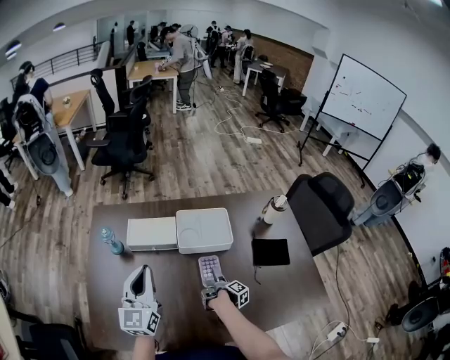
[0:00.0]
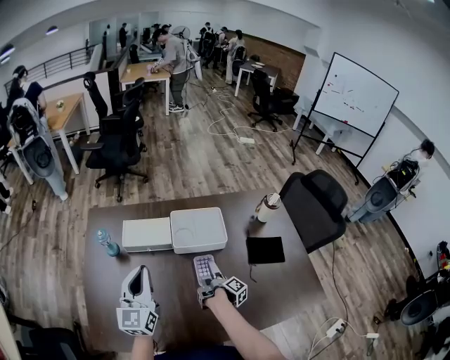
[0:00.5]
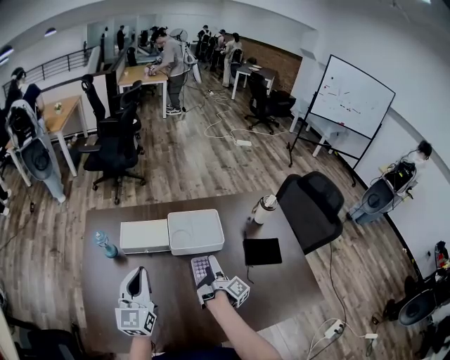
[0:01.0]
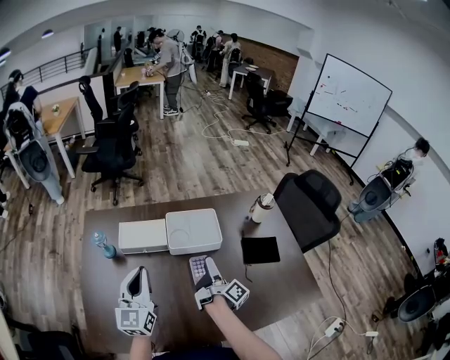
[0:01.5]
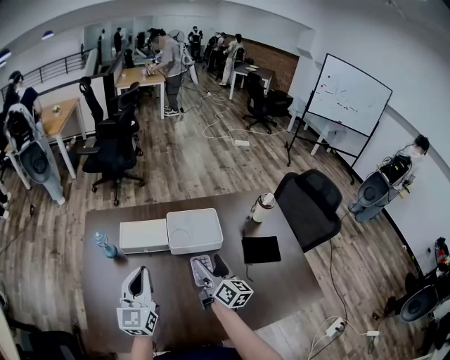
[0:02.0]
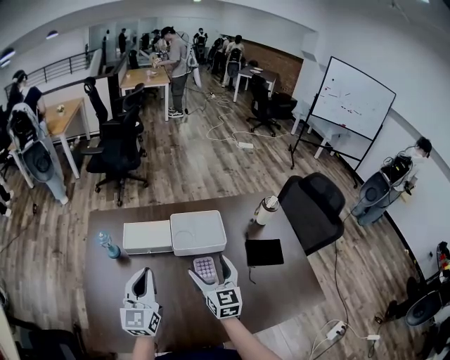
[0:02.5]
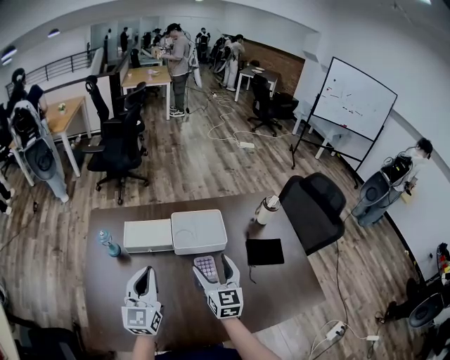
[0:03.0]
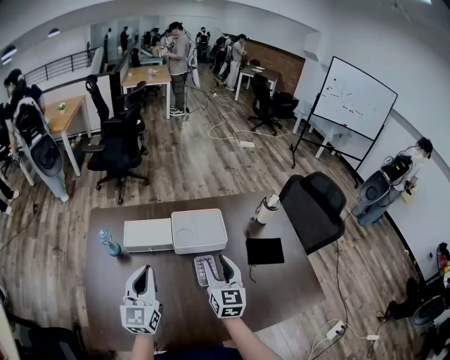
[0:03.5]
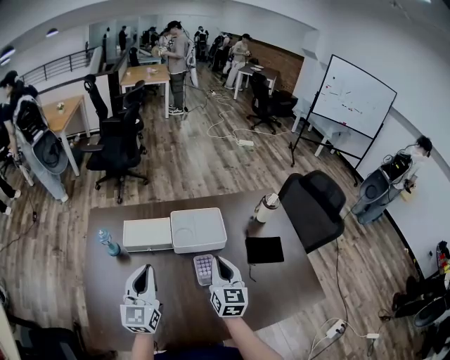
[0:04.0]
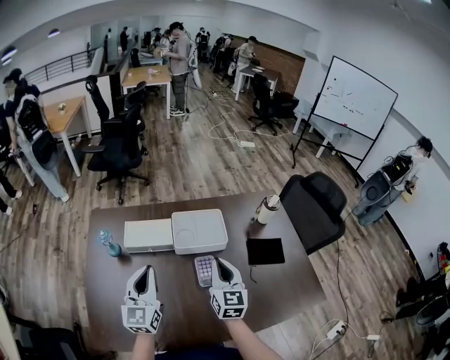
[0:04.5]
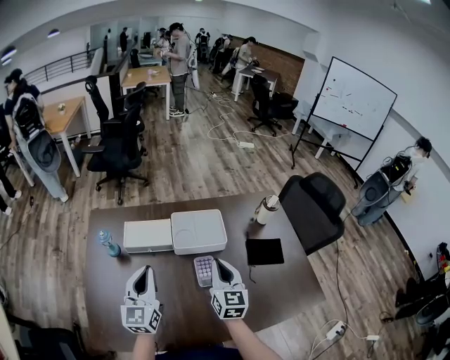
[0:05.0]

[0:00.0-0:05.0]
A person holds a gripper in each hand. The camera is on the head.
0:00.0 to 0:02.5: The right gripper travels upward by some 30 cm, and twists some 100 degrees counterclockwise, seen from behind.
0:02.5 to 0:05.0: The right gripper closes up.

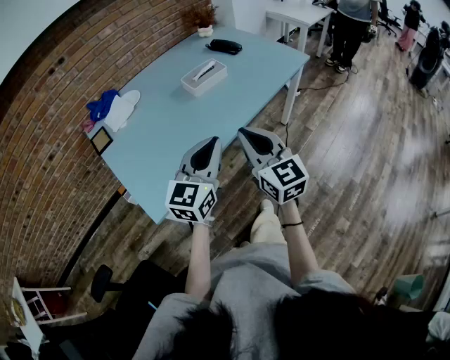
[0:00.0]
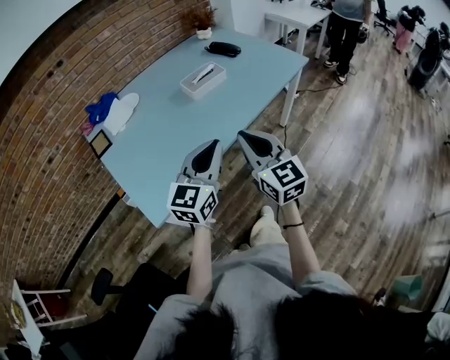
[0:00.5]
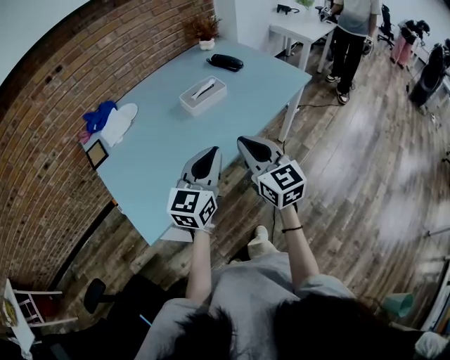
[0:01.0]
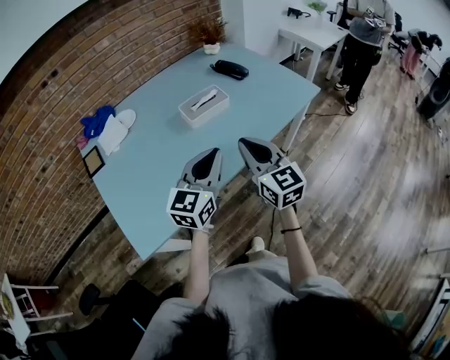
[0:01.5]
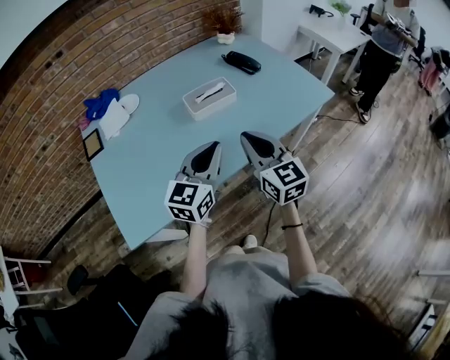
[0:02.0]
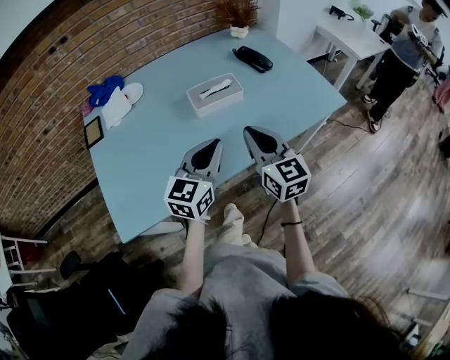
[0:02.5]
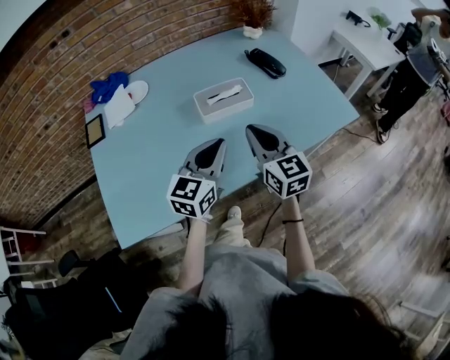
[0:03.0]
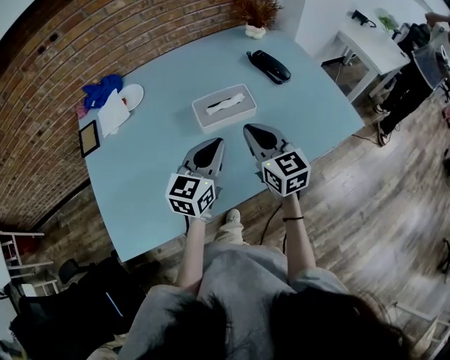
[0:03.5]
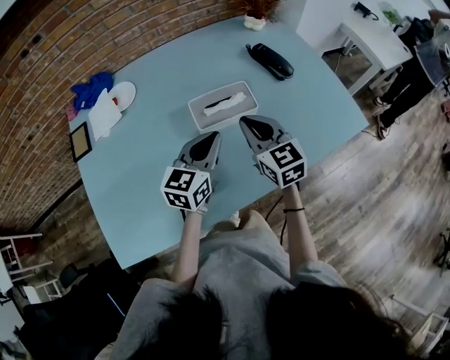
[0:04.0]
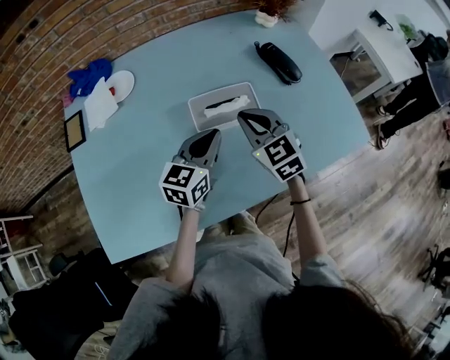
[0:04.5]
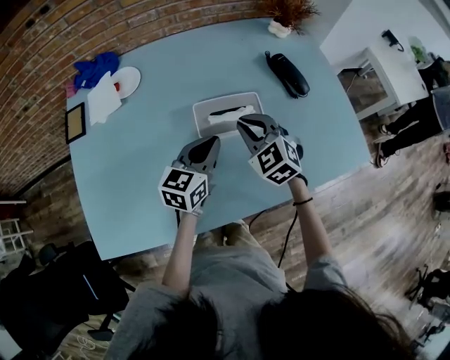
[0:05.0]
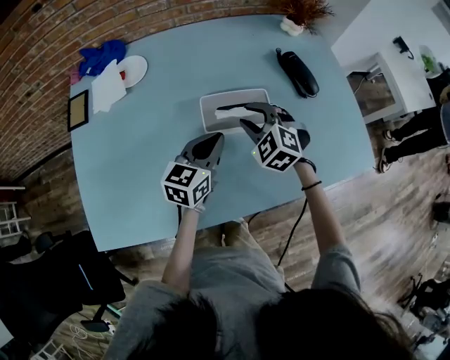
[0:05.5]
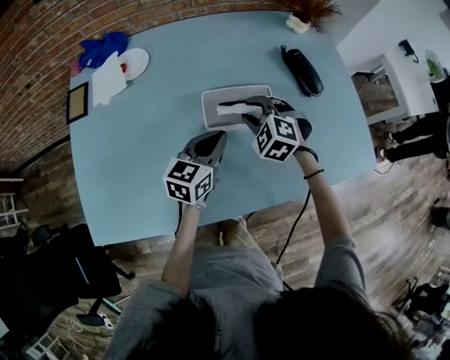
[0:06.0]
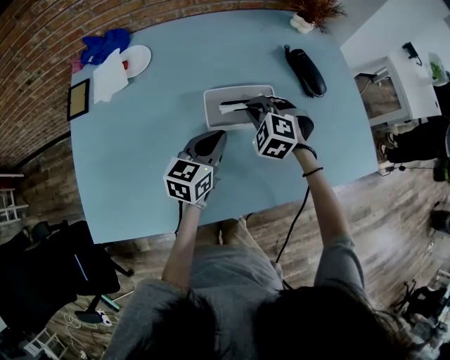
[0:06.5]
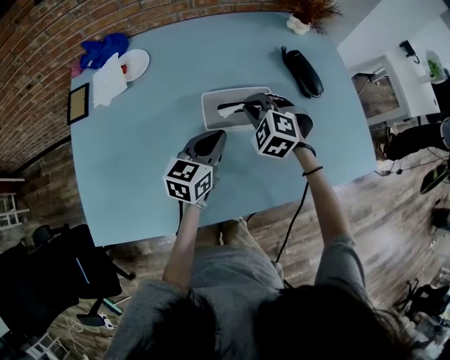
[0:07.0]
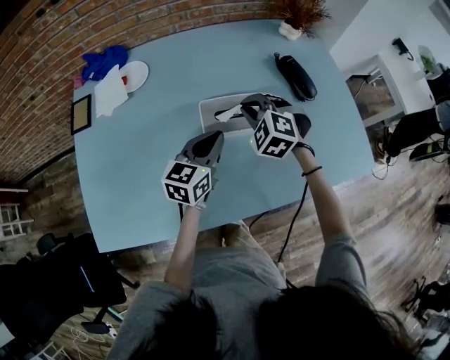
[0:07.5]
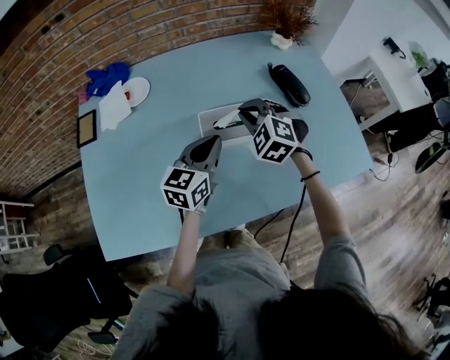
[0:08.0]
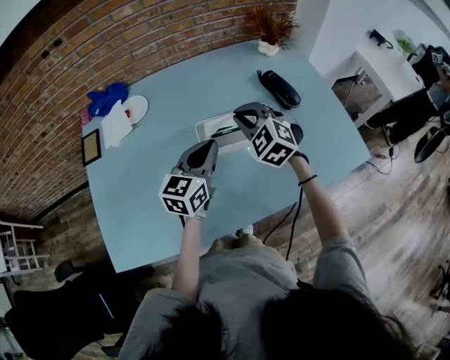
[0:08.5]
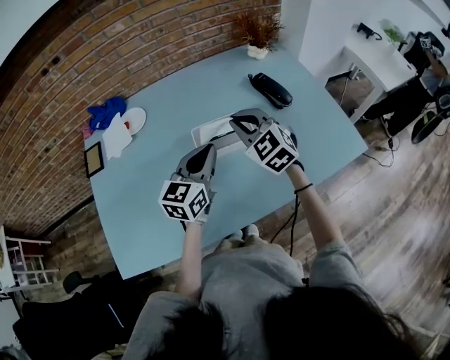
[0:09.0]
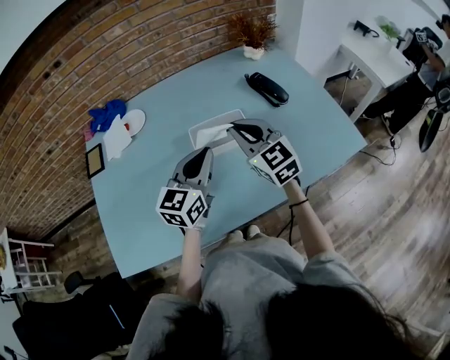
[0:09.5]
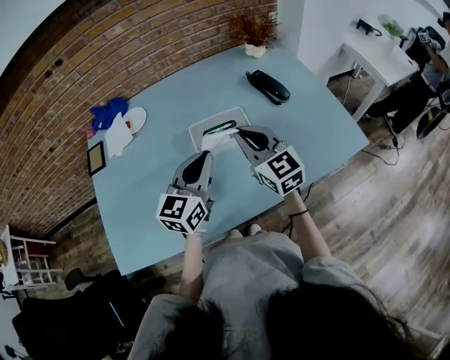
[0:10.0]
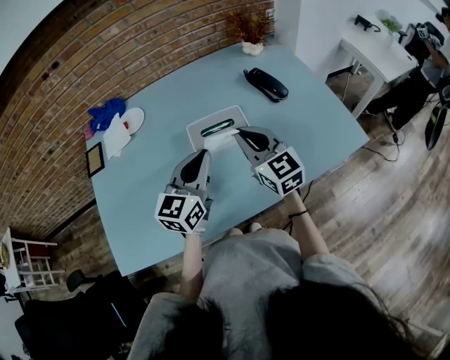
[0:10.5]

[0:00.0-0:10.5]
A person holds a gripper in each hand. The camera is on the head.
0:00.0 to 0:02.0: The grippers both shift forward by about 20 cm.
0:02.0 to 0:04.0: The grippers both shift forward by some 25 cm.
0:04.0 to 0:06.5: The right gripper is displaced downward and forward by approximately 15 cm, twists roughly 50 degrees counterclockwise, seen from behind, and opens and closes again. Meanwhile the left gripper heads downward, covering roughly 5 cm.
0:06.5 to 0:08.5: Both grippers travel together upward, approximately 10 cm. The right gripper rotates about 20 degrees.
0:08.5 to 0:10.5: The two grippers go some 10 cm backward. The right gripper turns by roughly 40 degrees.

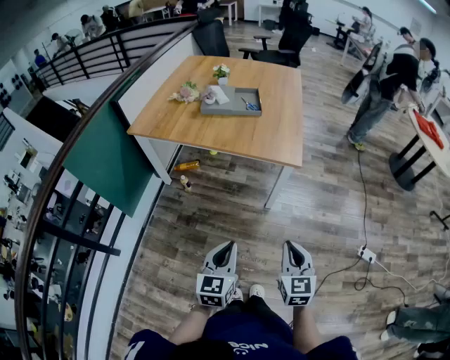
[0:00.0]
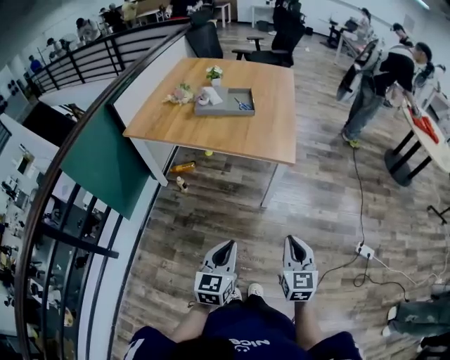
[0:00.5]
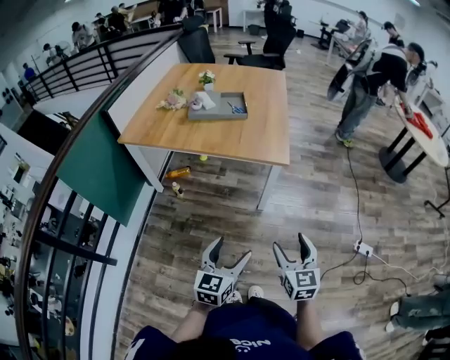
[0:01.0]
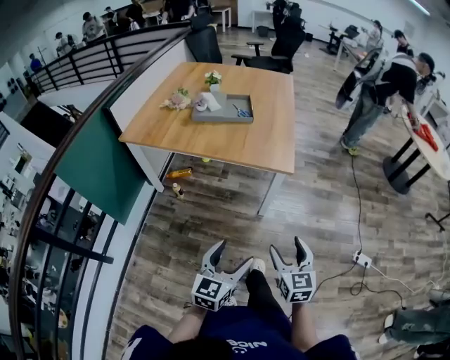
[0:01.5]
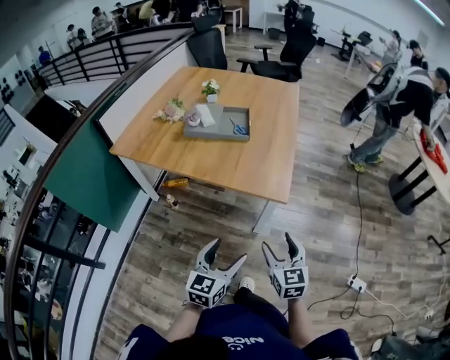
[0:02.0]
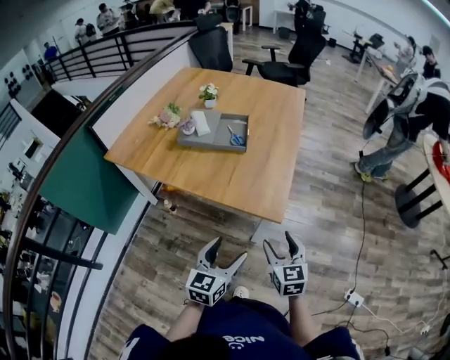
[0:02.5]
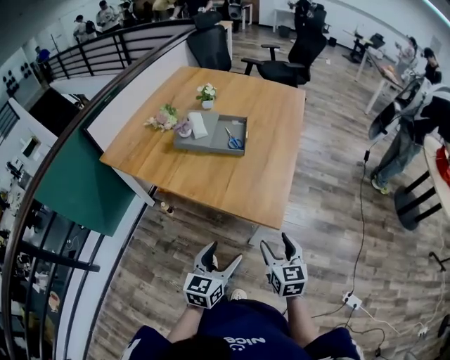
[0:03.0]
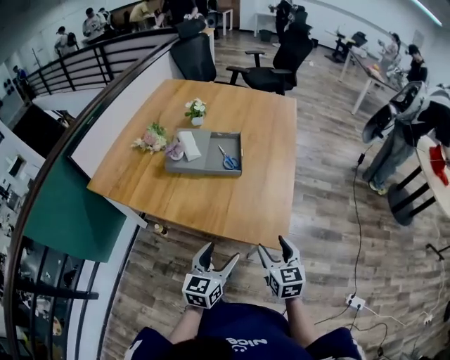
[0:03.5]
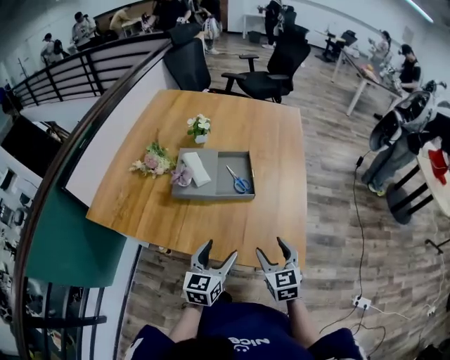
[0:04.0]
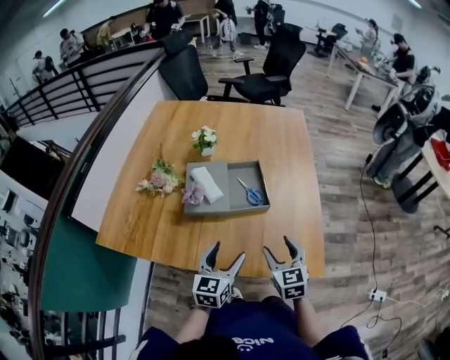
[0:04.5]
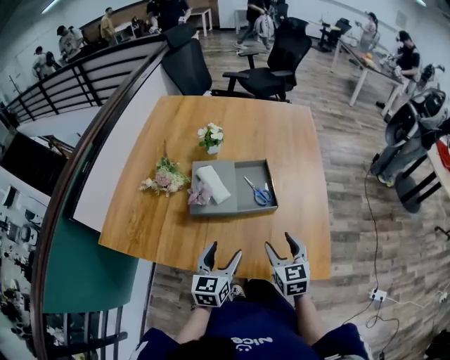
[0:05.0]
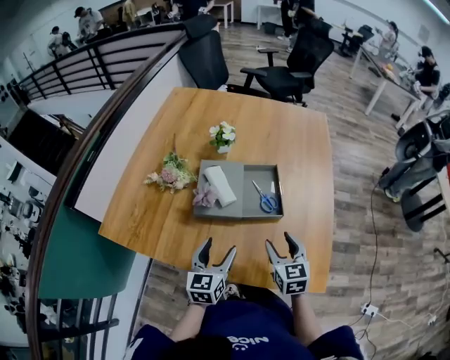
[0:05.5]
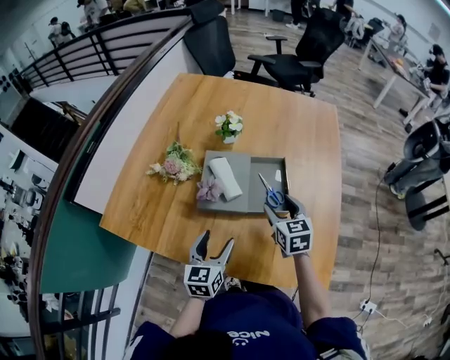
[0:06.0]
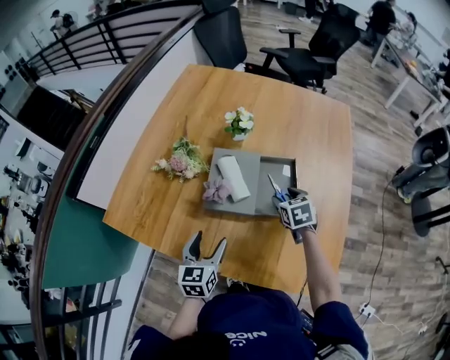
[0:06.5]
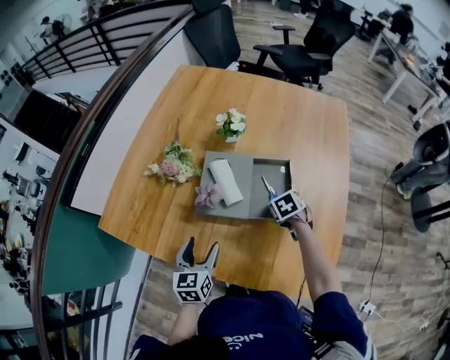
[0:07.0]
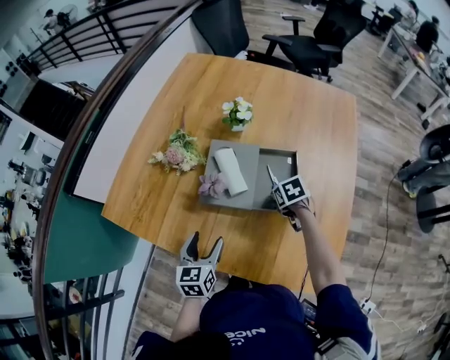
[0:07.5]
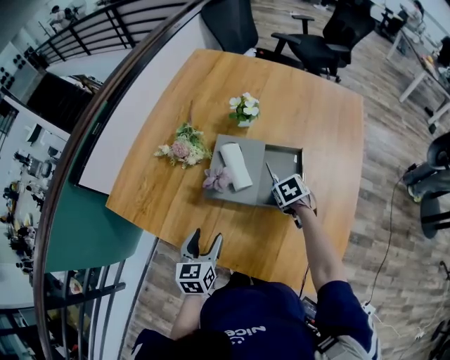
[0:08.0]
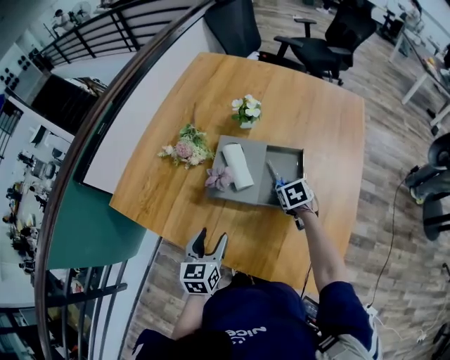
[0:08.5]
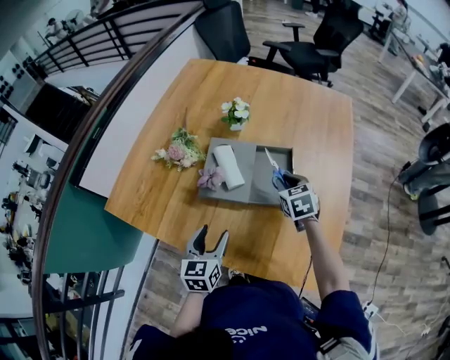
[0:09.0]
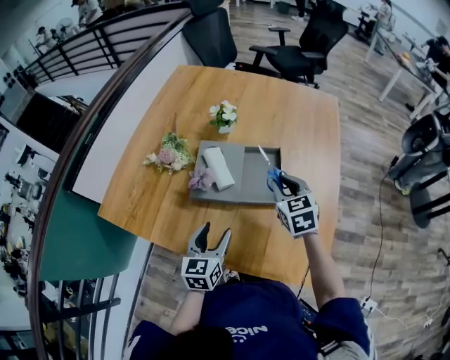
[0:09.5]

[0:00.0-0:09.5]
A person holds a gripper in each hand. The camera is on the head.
0:00.0 to 0:02.0: The left gripper travels forward and to the right by about 20 cm, and opens its fingers; the right gripper moves forward, some 20 cm, and opens.
0:02.0 to 0:04.0: Both grippers move forward, some 30 cm.
0:04.0 to 0:05.5: The right gripper is displaced forward and to the left by some 15 cm. The left gripper shifts about 15 cm to the left and forward.
0:05.5 to 0:07.5: The right gripper goes some 20 cm forward and downward, and tilts its fingers approximately 40 degrees downward. Meanwhile the left gripper goes approximately 5 cm to the left.
0:07.5 to 0:09.5: The right gripper is displaced upward by some 15 cm, and points its fingers roughly 30 degrees further upward, while the left gripper shifts some 5 cm to the right.

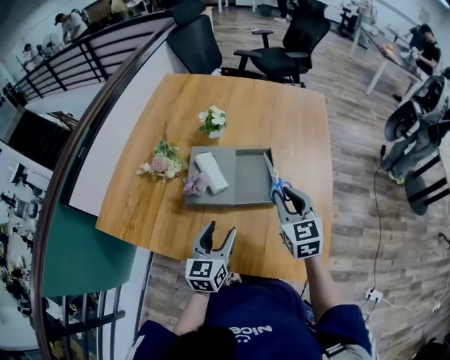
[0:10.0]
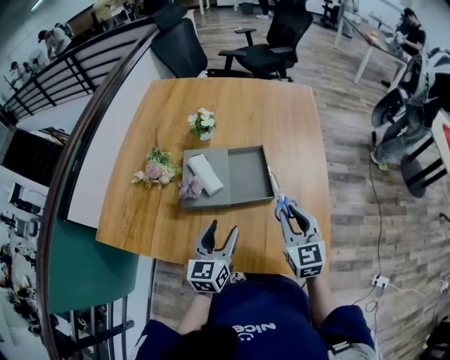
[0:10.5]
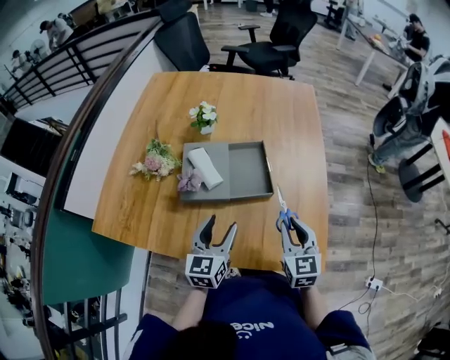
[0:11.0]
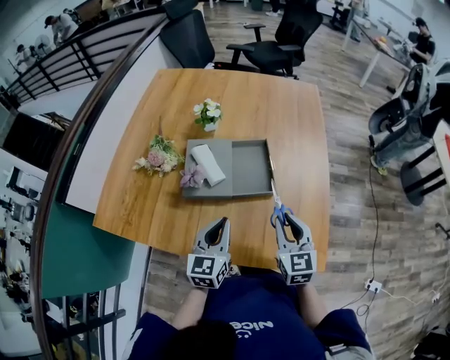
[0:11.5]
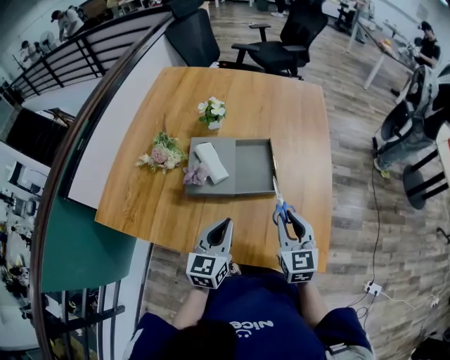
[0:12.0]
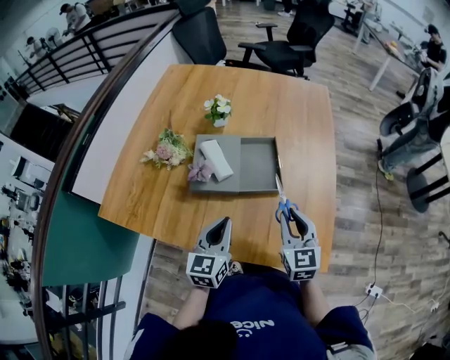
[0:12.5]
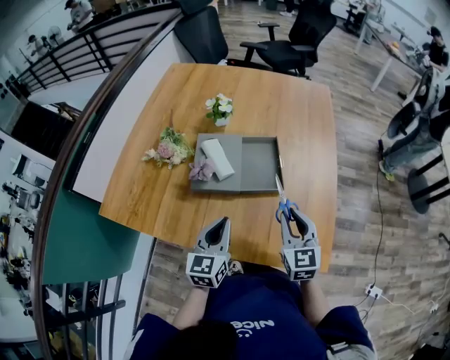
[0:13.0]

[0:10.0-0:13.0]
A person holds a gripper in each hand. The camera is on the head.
0:10.0 to 0:11.5: The right gripper travels backward by roughly 10 cm, while the left gripper closes up.
0:11.5 to 0:13.0: The grippers move only a little.
